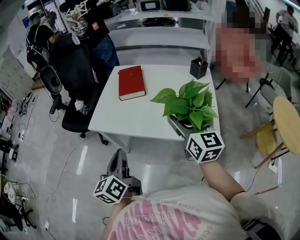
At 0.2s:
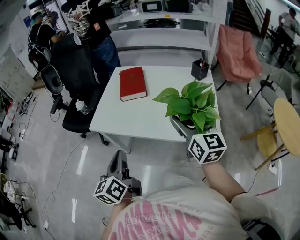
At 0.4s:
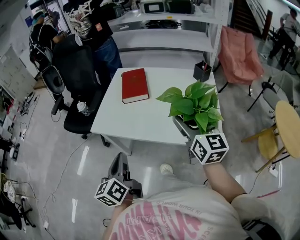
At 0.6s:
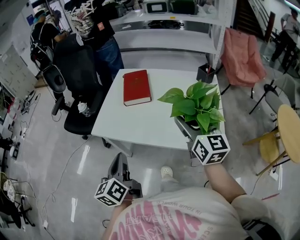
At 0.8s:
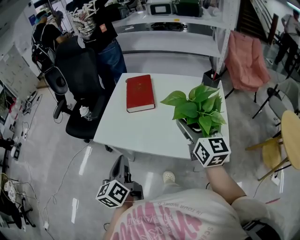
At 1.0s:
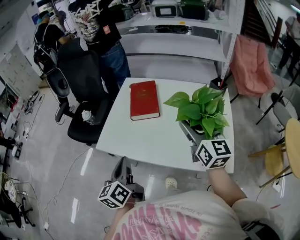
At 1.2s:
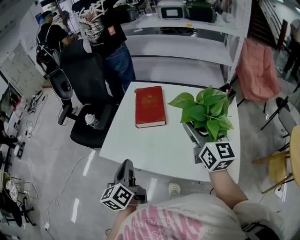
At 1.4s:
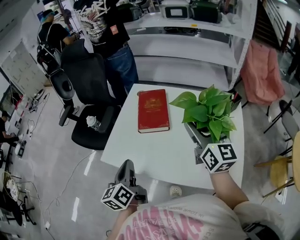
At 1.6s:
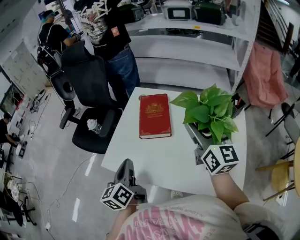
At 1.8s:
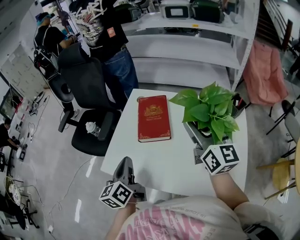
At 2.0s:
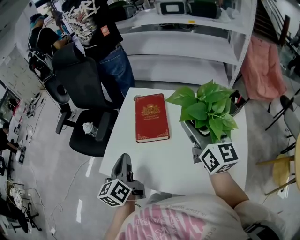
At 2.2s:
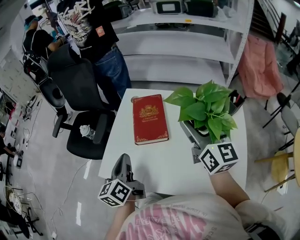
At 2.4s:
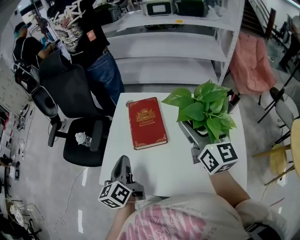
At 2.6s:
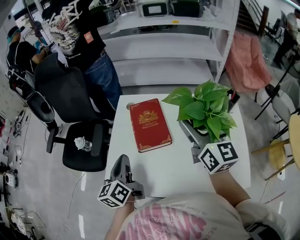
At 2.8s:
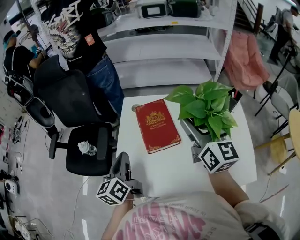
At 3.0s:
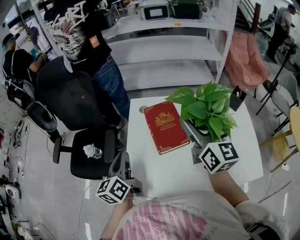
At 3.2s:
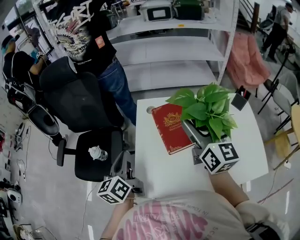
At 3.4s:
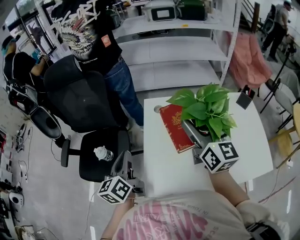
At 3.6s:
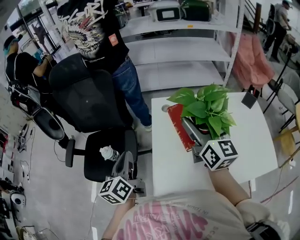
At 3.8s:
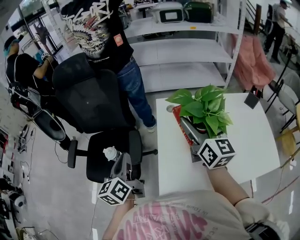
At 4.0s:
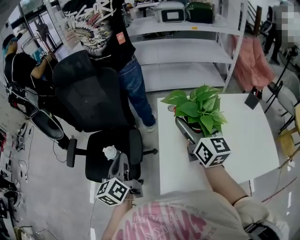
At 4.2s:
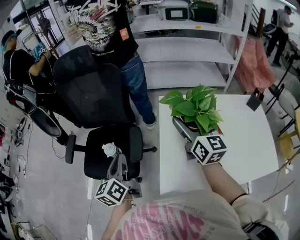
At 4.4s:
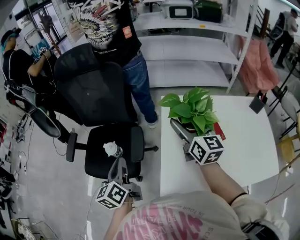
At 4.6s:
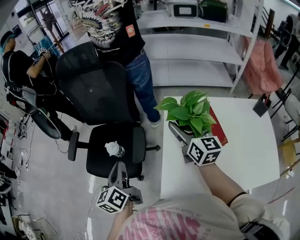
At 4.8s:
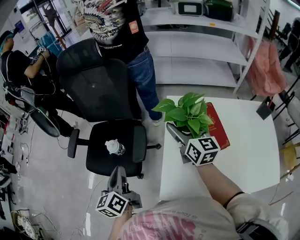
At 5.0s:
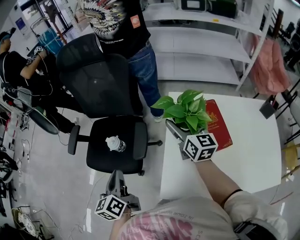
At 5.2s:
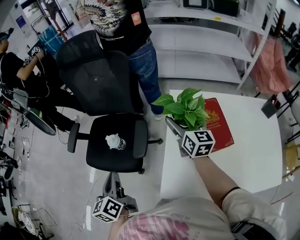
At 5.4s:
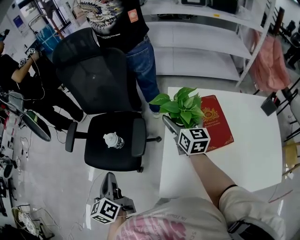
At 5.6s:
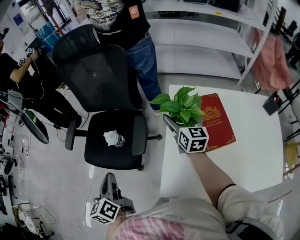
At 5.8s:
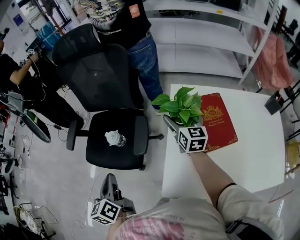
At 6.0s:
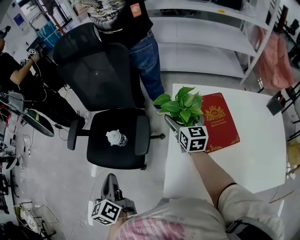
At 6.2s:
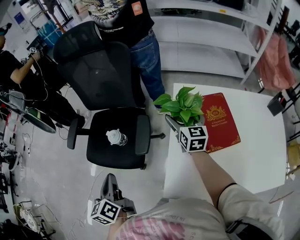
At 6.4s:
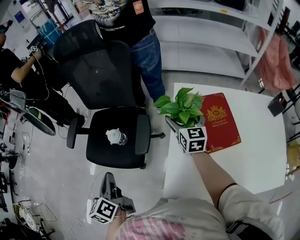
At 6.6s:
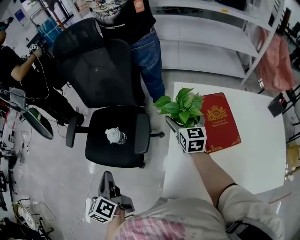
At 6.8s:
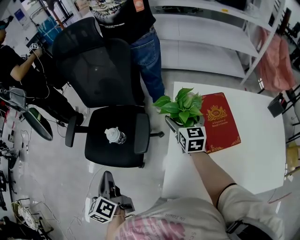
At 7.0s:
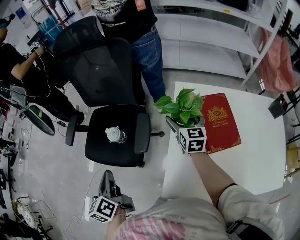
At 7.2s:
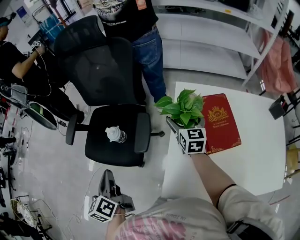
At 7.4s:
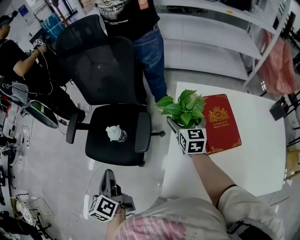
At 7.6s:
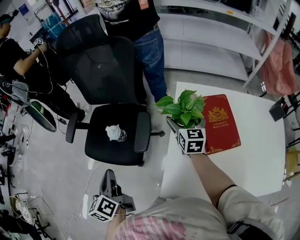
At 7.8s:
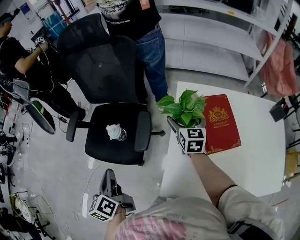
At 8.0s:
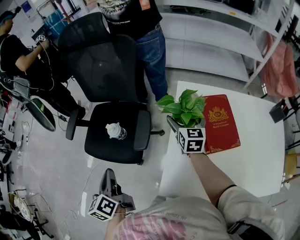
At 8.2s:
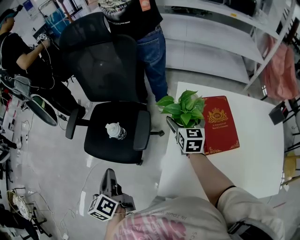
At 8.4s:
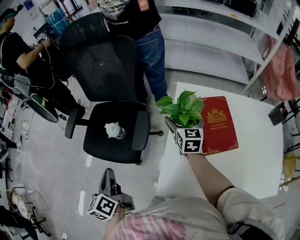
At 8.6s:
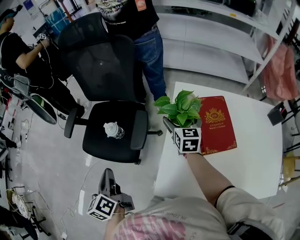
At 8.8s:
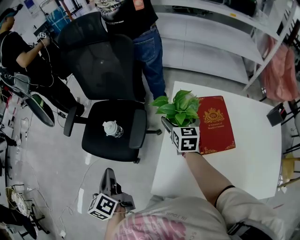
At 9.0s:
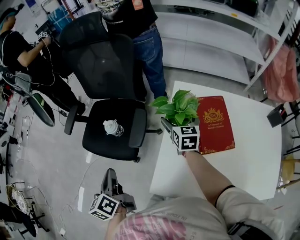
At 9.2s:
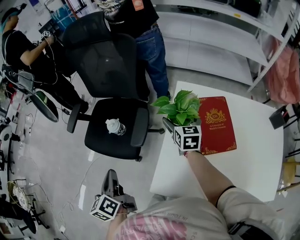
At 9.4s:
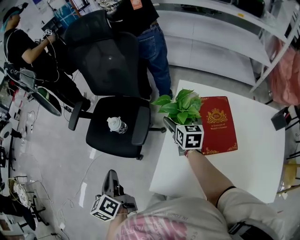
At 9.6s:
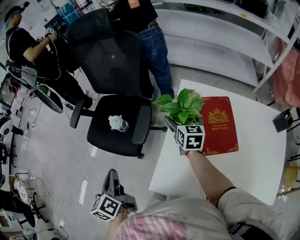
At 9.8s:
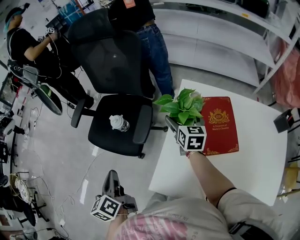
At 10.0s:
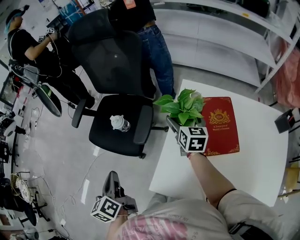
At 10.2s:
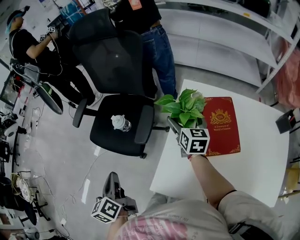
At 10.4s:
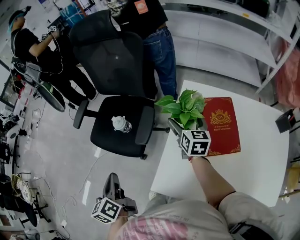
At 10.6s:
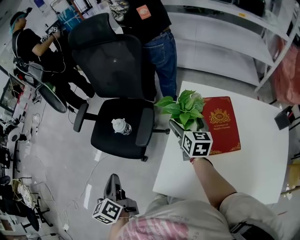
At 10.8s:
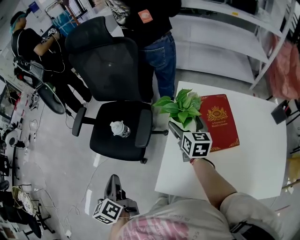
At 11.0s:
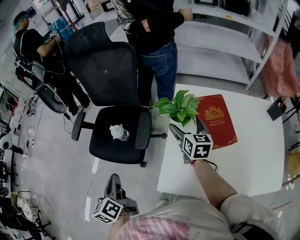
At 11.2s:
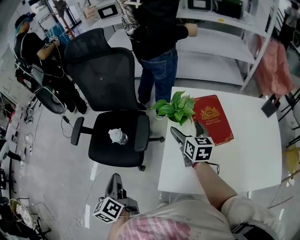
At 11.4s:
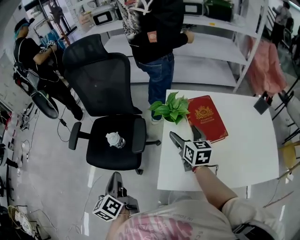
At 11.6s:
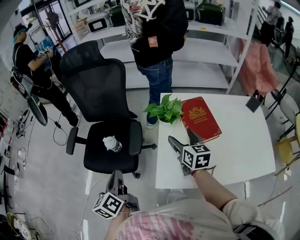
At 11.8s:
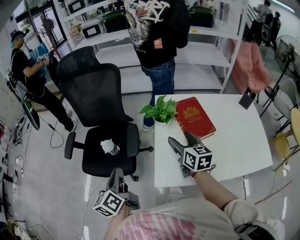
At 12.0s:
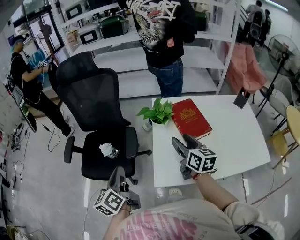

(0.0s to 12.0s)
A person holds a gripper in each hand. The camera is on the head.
0.0s - 1.6s: Both grippers move forward, some 30 cm.
1.6s - 3.0s: The right gripper shifts approximately 15 cm to the left and forward, while the left gripper goes some 25 cm forward and to the left.
3.0s - 4.4s: Both grippers move to the left, approximately 25 cm.
4.4s - 6.0s: The left gripper goes approximately 10 cm to the left and downward. The right gripper heads downward and forward, covering about 20 cm.
6.0s - 9.0s: The grippers move only a little.
9.0s - 10.4s: There are only small adjustments of the grippers.
10.4s - 12.0s: The left gripper heads upward, covering roughly 5 cm, and turns by roughly 30 degrees, while the right gripper heads backward and upward, covering about 25 cm, and closes up.

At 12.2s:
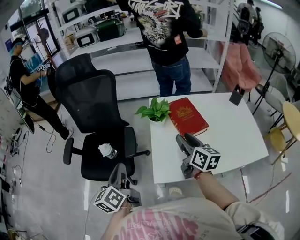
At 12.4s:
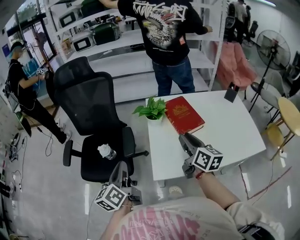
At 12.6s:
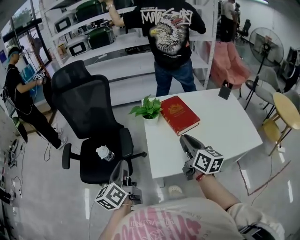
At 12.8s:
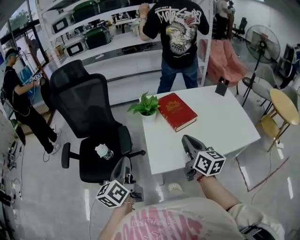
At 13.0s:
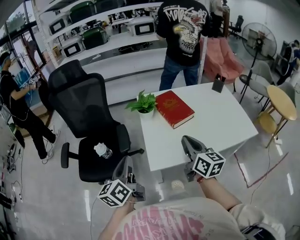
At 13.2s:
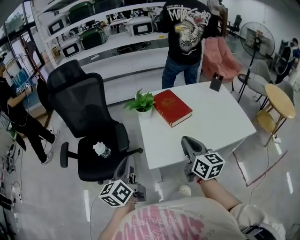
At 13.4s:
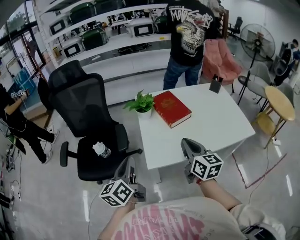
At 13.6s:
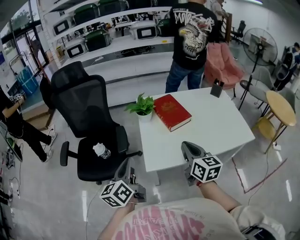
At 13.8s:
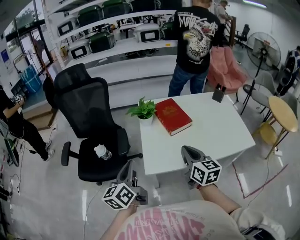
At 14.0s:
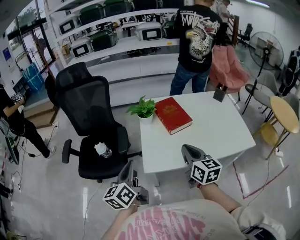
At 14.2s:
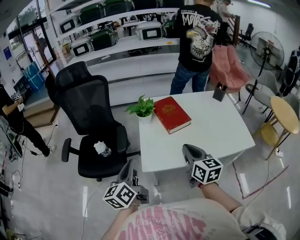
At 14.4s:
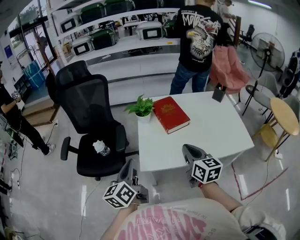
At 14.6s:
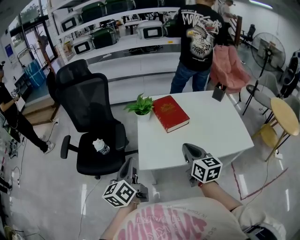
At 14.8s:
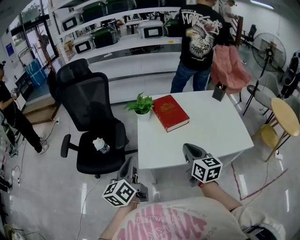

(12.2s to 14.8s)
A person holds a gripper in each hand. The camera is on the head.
12.2s - 13.4s: The left gripper shifts some 10 cm backward and to the right; the right gripper heads backward, covering approximately 15 cm.
13.4s - 14.8s: The two grippers go about 5 cm to the right.

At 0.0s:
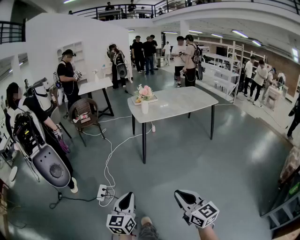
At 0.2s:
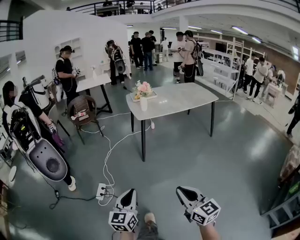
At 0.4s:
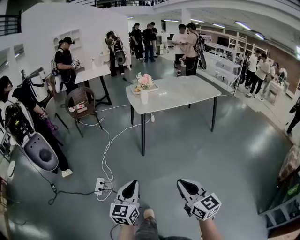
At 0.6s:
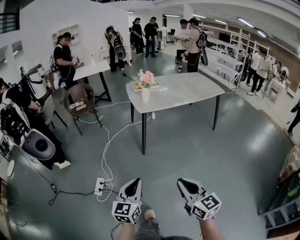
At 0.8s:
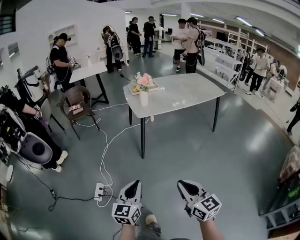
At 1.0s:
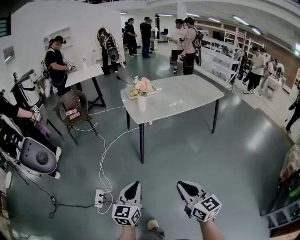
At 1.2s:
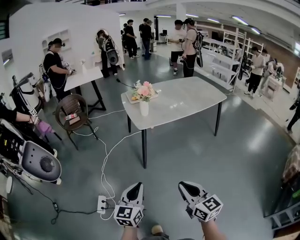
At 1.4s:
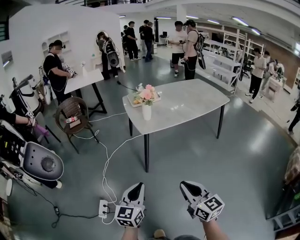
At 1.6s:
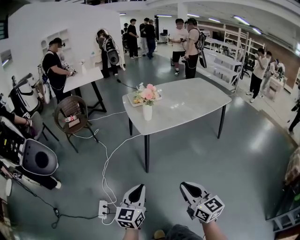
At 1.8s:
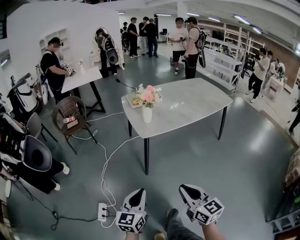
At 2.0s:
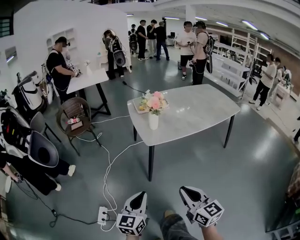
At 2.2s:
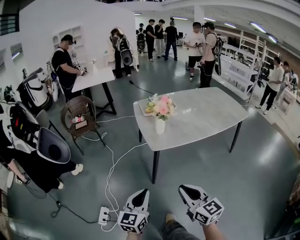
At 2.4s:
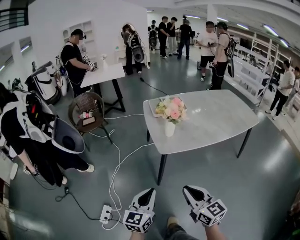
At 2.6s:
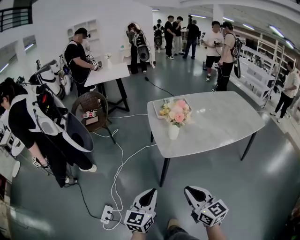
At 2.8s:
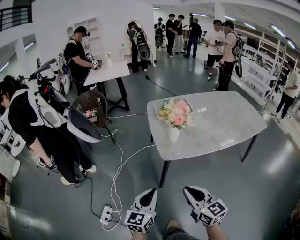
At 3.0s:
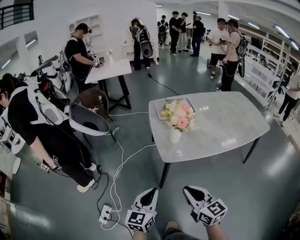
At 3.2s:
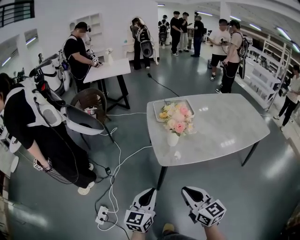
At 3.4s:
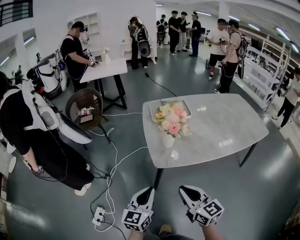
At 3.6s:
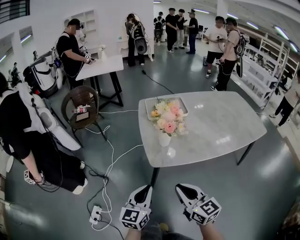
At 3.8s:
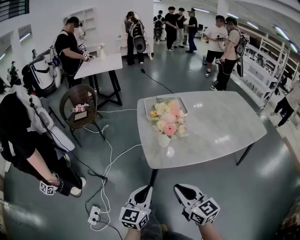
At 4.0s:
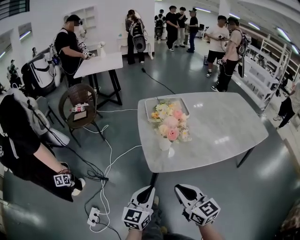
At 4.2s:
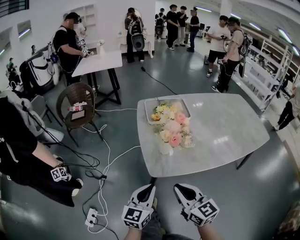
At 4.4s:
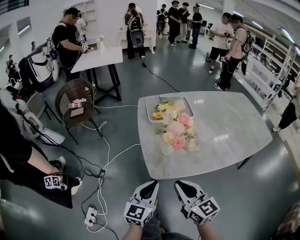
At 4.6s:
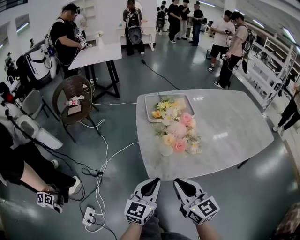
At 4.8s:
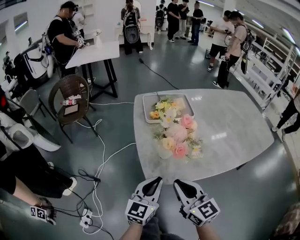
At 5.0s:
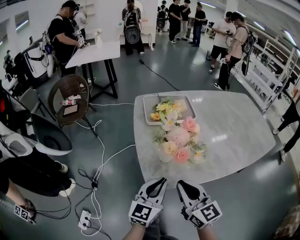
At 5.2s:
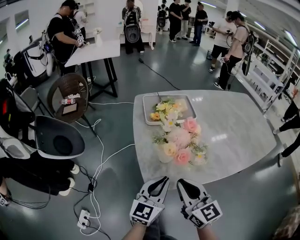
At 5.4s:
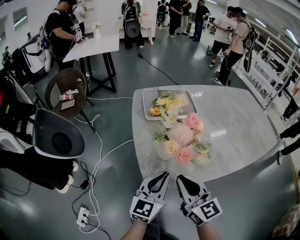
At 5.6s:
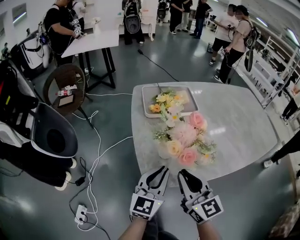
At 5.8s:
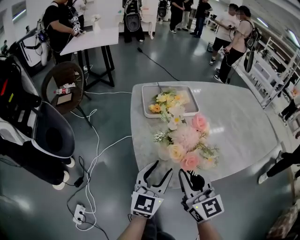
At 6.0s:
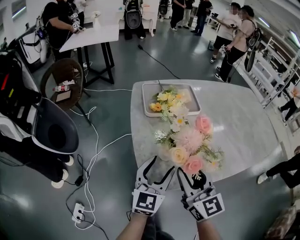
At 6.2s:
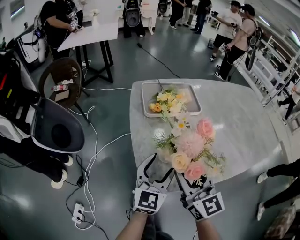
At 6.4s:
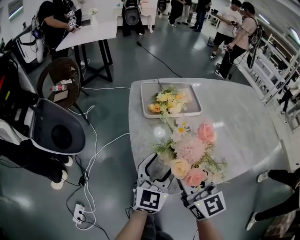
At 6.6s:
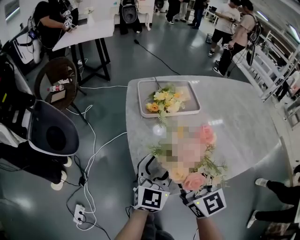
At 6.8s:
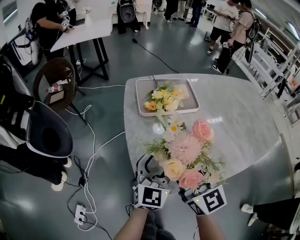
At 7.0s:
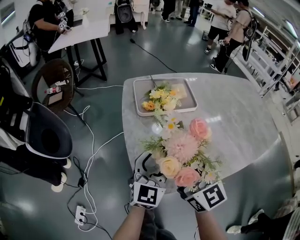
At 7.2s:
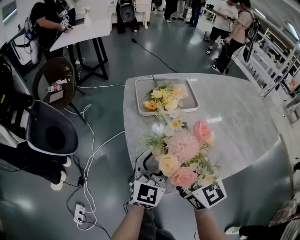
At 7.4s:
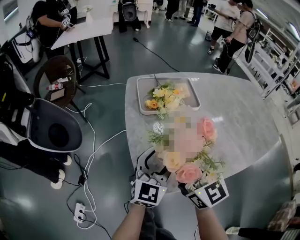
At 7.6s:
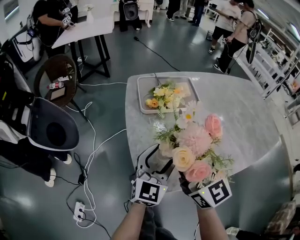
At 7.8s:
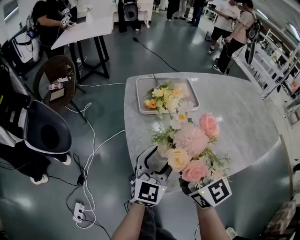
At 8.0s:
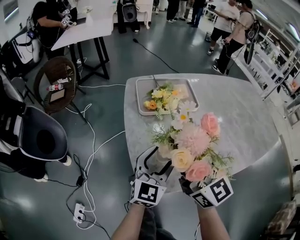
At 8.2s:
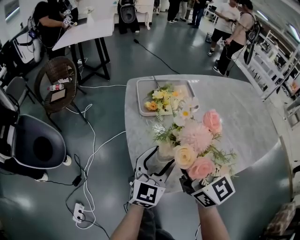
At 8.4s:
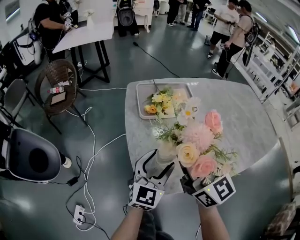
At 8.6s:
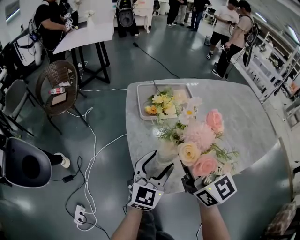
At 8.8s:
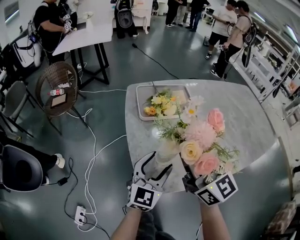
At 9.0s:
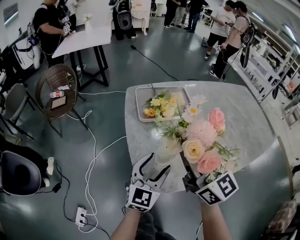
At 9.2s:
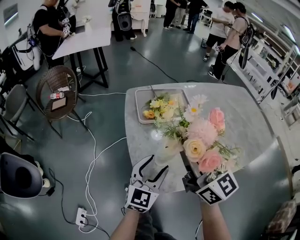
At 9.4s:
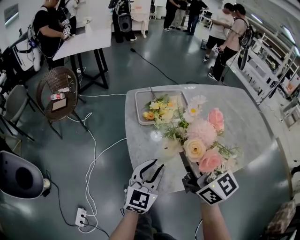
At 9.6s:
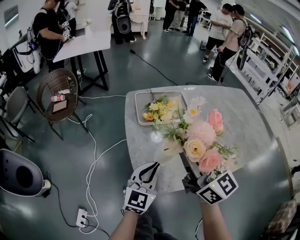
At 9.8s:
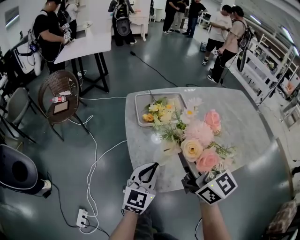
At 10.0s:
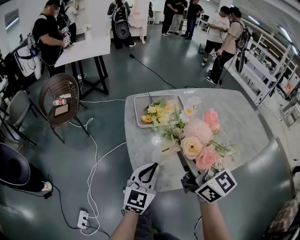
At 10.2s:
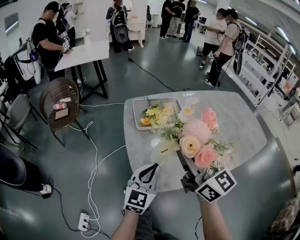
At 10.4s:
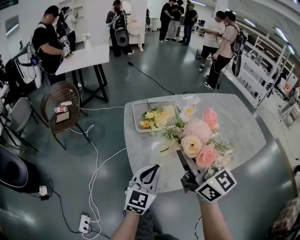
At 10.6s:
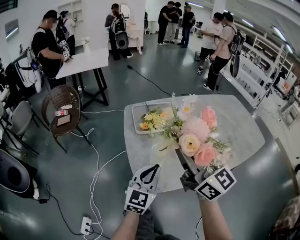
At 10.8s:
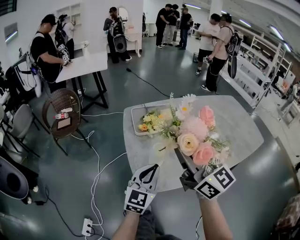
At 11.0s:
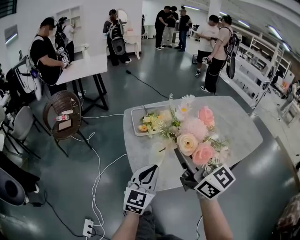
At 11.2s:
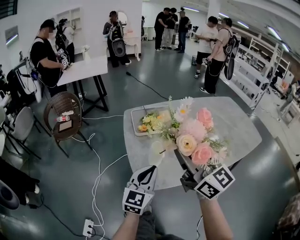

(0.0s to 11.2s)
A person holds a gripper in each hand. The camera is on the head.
0.0s - 1.6s: Both grippers travel together forward, some 35 cm.
1.6s - 3.2s: Both grippers move forward, roughly 25 cm.
3.2s - 4.8s: The right gripper goes about 20 cm forward. The left gripper is displaced forward and to the right by approximately 20 cm.
4.8s - 6.4s: Both grippers move forward, about 10 cm. The left gripper opens up; the right gripper opens its fingers.
6.4s - 8.0s: The right gripper moves roughly 5 cm.
8.0s - 9.6s: The left gripper ends up about 5 cm from where it was, and closes. The right gripper goes roughly 5 cm upward.
9.6s - 11.2s: The grippers both shift upward and backward by roughly 10 cm.
